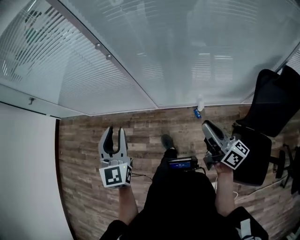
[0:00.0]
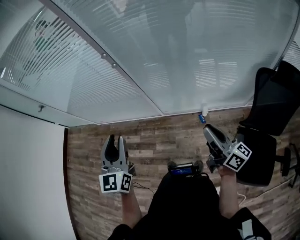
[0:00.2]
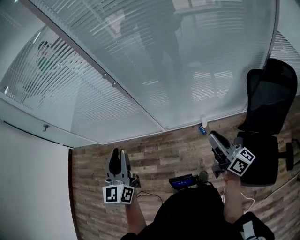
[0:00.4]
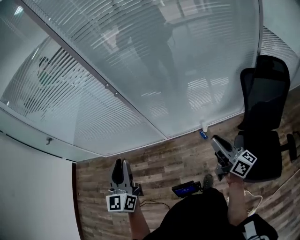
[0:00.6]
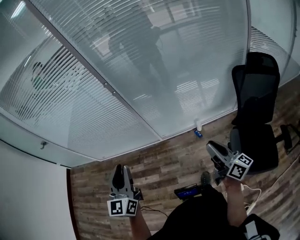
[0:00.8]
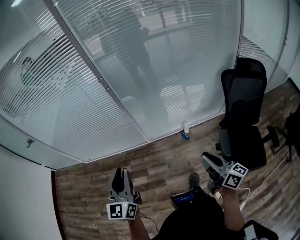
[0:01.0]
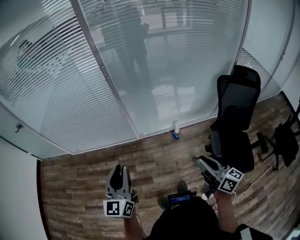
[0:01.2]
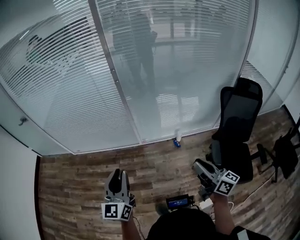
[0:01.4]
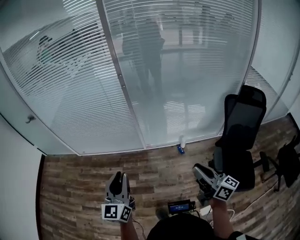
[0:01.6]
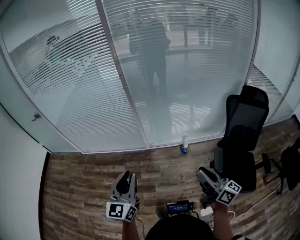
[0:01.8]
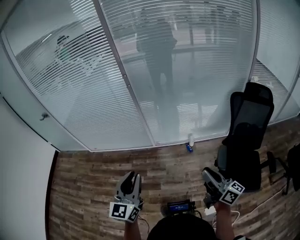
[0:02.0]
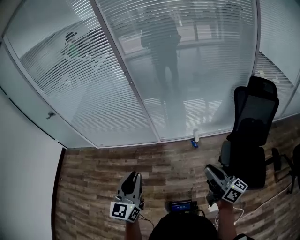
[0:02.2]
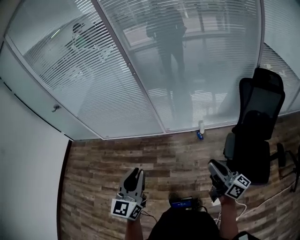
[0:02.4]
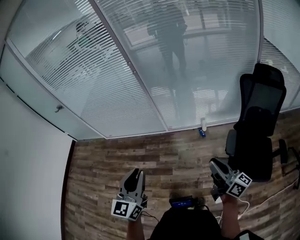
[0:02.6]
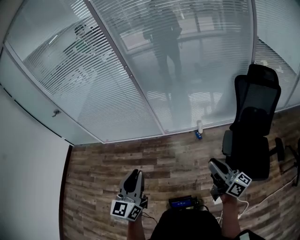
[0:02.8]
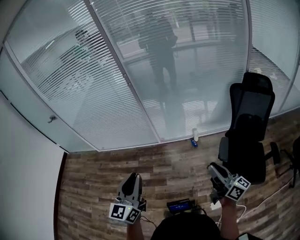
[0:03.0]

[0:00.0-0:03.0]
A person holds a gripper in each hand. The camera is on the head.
0:00.0 to 0:01.6: Both grippers travel together backward and to the left, roughly 25 cm. The left gripper turns by some 30 degrees.
0:01.6 to 0:03.0: The two grippers go roughly 15 cm backward and to the right.

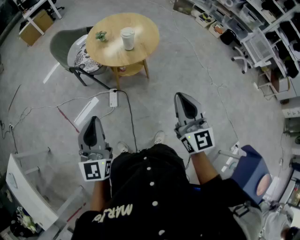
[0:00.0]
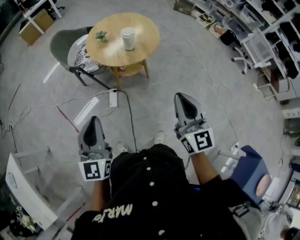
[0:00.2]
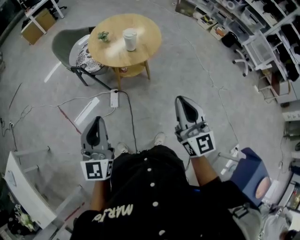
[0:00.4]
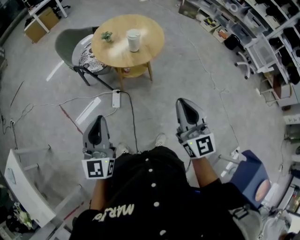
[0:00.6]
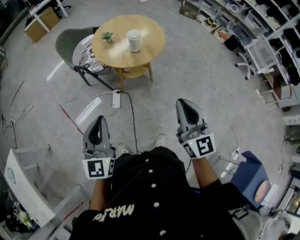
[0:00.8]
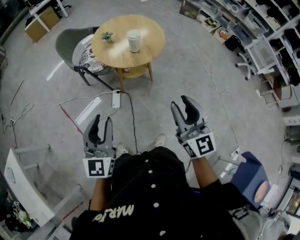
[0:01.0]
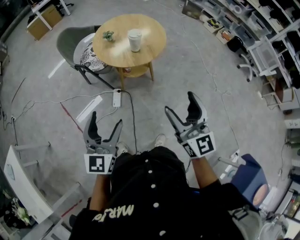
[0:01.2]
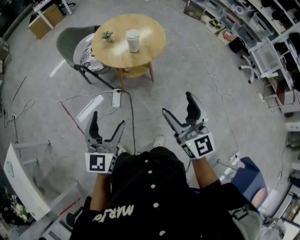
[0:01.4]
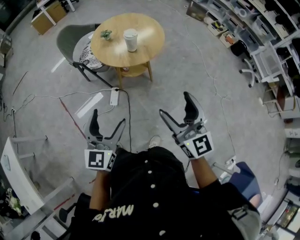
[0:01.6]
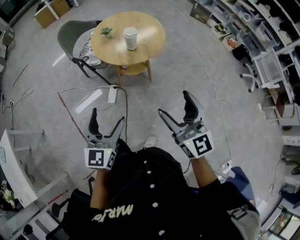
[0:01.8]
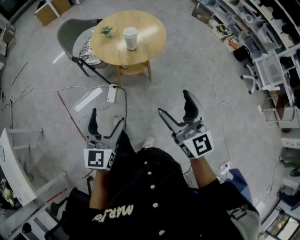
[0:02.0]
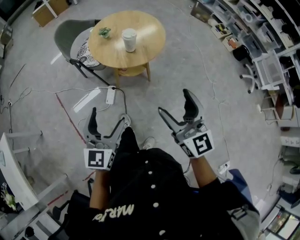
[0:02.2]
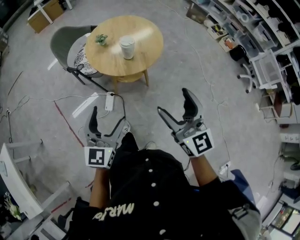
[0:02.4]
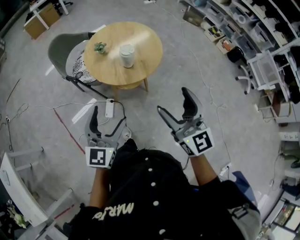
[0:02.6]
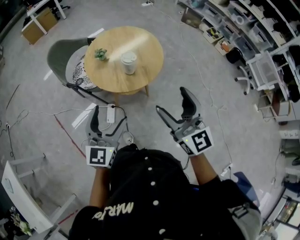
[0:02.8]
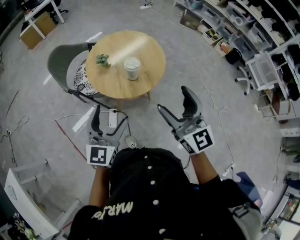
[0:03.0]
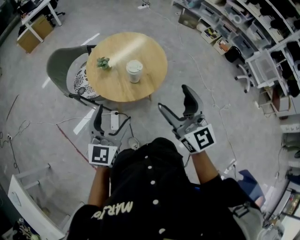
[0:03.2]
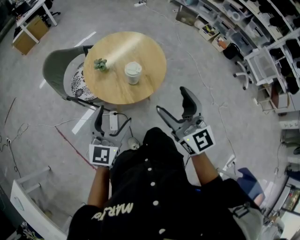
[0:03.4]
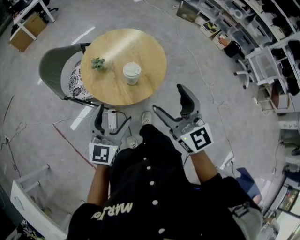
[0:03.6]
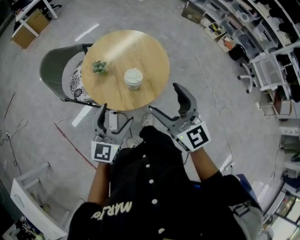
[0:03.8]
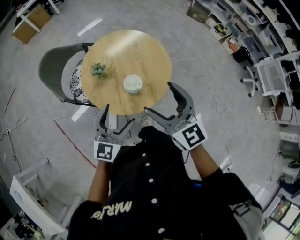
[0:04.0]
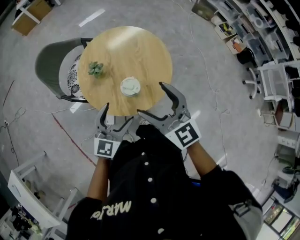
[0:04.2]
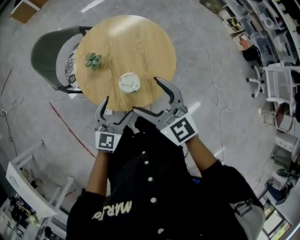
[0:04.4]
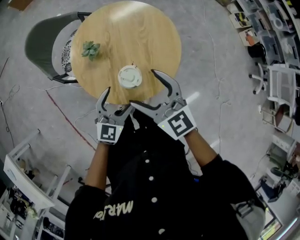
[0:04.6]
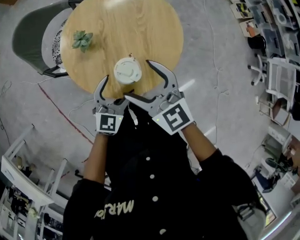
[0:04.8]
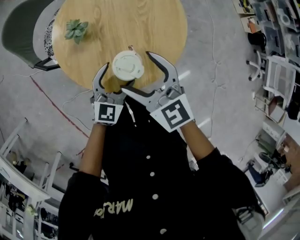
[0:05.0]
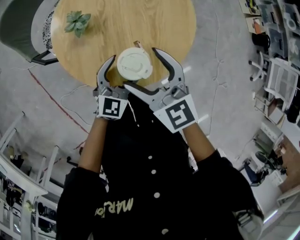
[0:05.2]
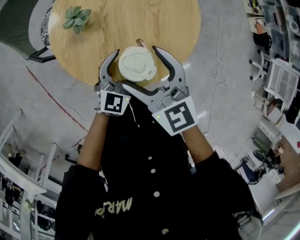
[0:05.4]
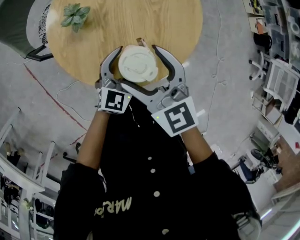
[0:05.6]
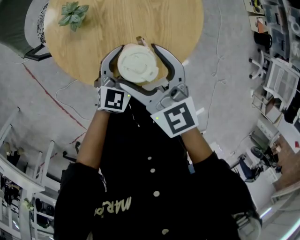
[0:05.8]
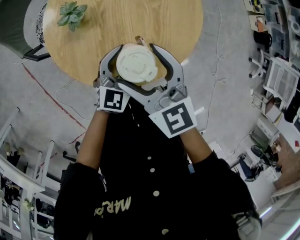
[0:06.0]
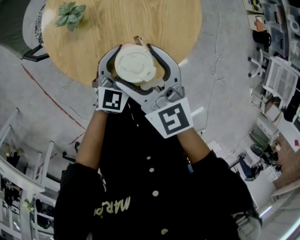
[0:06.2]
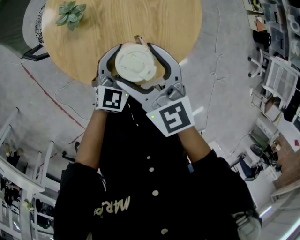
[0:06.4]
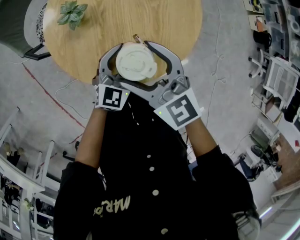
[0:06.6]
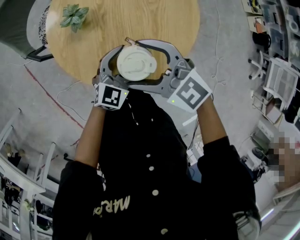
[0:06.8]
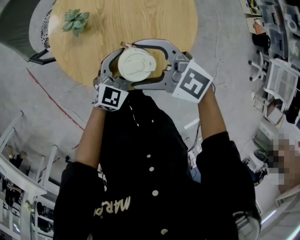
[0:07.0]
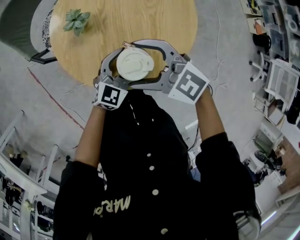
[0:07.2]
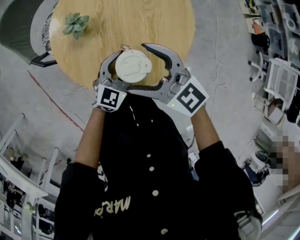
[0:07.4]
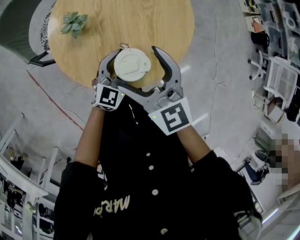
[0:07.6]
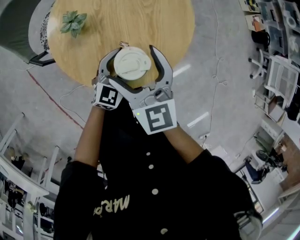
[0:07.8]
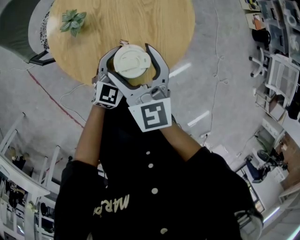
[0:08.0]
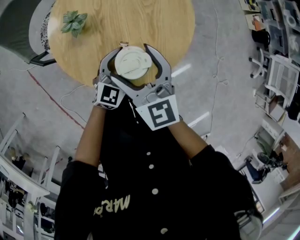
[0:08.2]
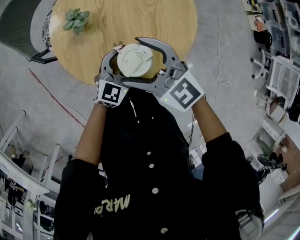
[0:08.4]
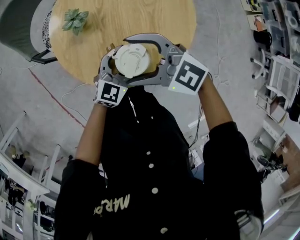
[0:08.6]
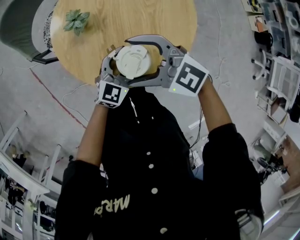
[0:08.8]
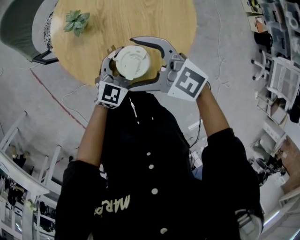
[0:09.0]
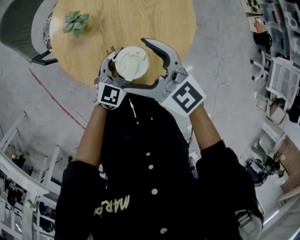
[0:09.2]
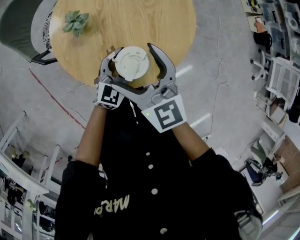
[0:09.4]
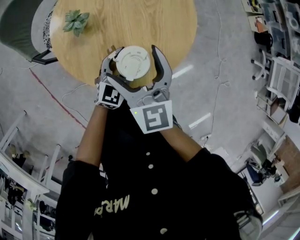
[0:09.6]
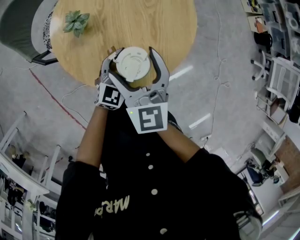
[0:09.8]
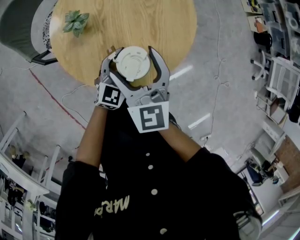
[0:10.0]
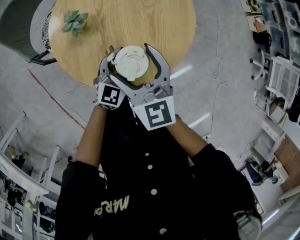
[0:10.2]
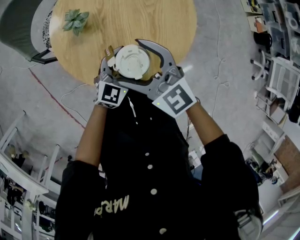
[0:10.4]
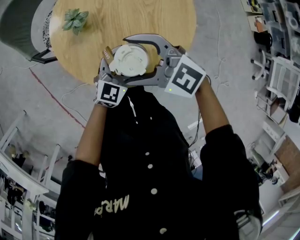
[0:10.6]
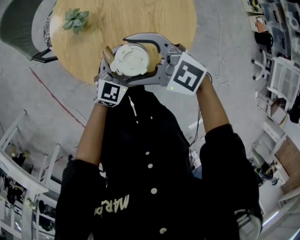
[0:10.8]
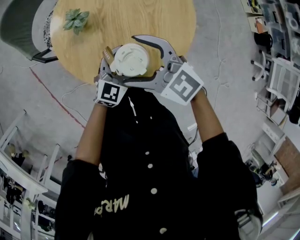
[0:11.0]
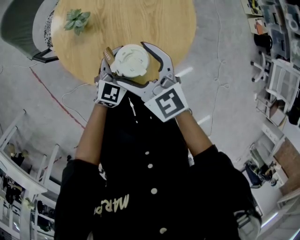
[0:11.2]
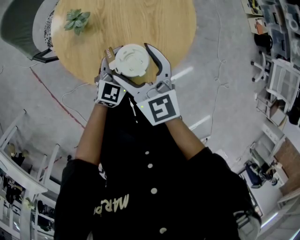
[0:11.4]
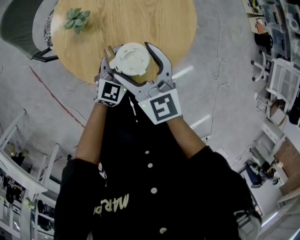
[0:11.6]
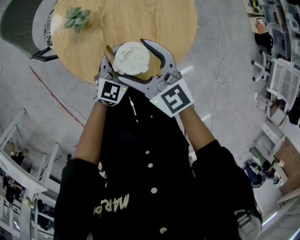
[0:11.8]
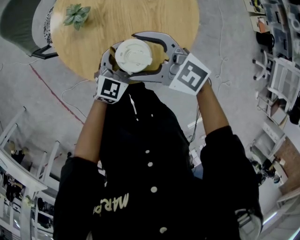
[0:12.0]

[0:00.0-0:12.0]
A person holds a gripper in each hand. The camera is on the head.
0:00.0 to 0:01.6: The left gripper moves to the right, some 10 cm, and opens up. Meanwhile the right gripper opens.
0:01.6 to 0:03.0: Both grippers move forward, roughly 25 cm.
0:03.0 to 0:04.4: The grippers both shift forward and downward by roughly 30 cm. The right gripper rotates approximately 30 degrees.
0:04.4 to 0:06.0: The grippers both shift downward and forward by about 20 cm.
0:07.6 to 0:09.0: The right gripper rotates about 40 degrees.
0:09.0 to 0:10.4: The right gripper changes its angle by roughly 20 degrees.

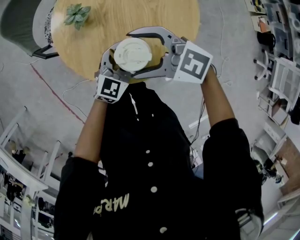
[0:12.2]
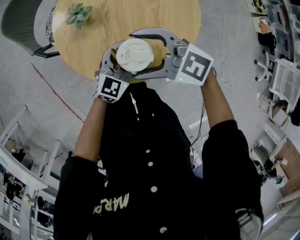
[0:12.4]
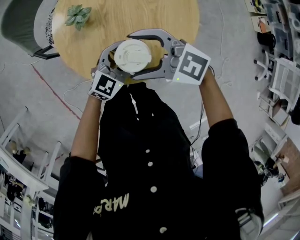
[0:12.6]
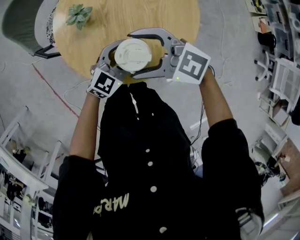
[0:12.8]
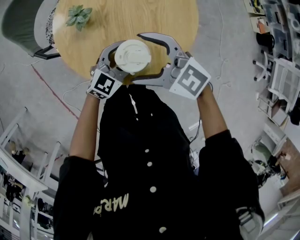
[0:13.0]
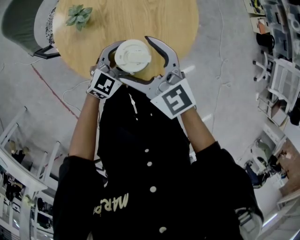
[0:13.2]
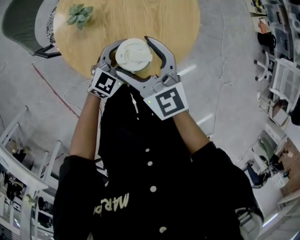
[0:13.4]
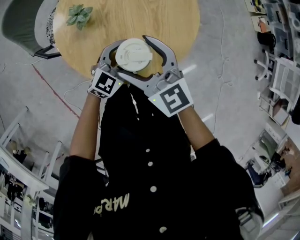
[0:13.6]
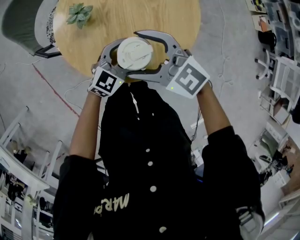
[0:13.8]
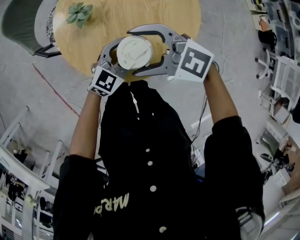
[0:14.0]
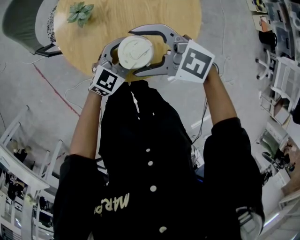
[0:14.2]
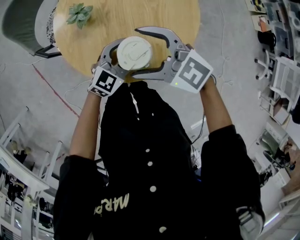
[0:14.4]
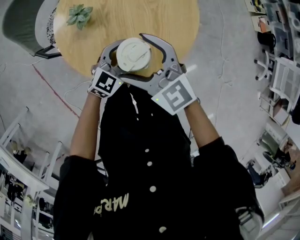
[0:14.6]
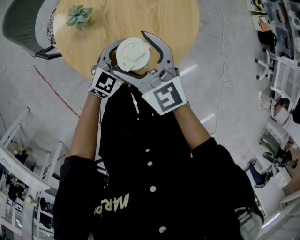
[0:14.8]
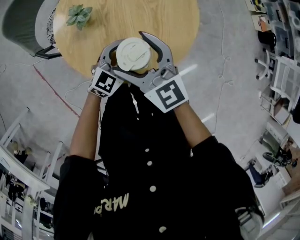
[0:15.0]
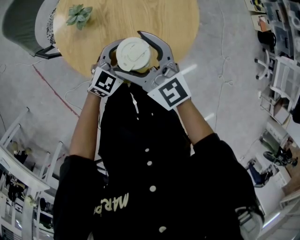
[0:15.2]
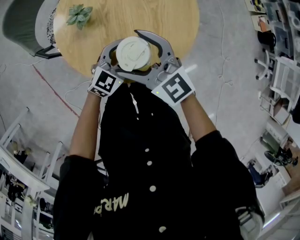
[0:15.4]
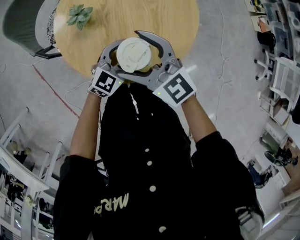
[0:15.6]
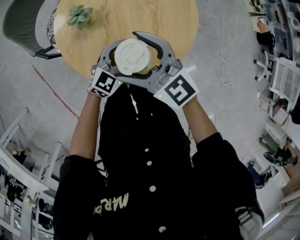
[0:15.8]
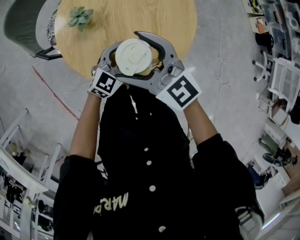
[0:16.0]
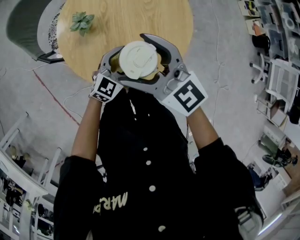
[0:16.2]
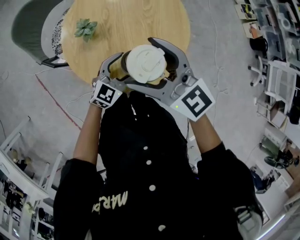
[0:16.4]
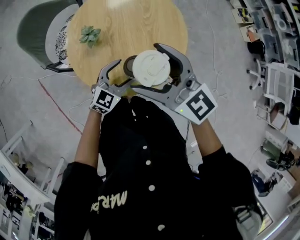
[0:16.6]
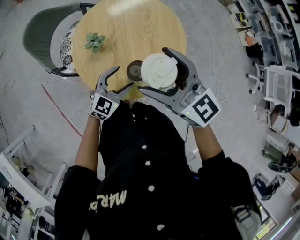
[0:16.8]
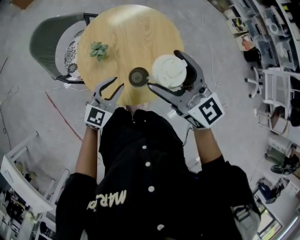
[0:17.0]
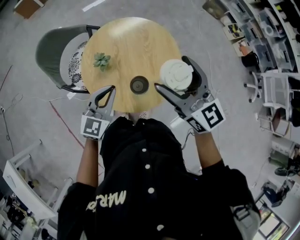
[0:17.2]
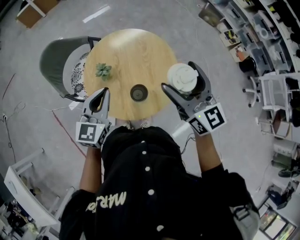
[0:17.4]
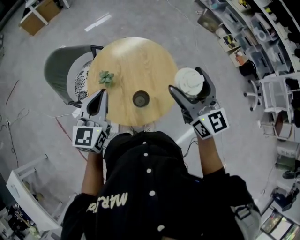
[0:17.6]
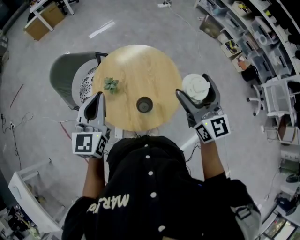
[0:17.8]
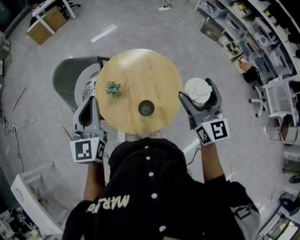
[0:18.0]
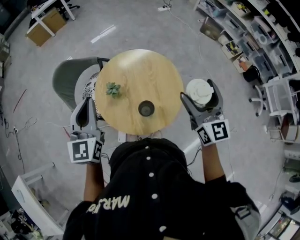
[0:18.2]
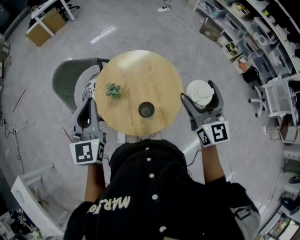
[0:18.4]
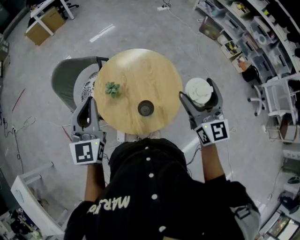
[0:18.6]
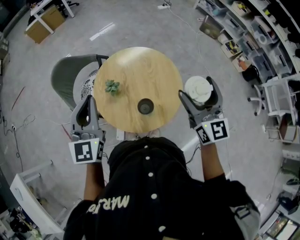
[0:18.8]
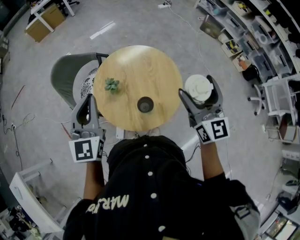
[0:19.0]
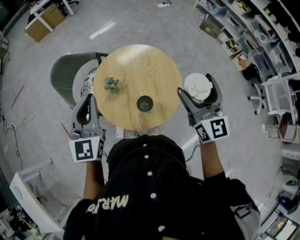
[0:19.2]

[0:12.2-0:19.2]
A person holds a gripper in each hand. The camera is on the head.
0:12.2 to 0:13.6: The right gripper turns by approximately 50 degrees.
0:15.0 to 0:16.4: The right gripper goes approximately 10 cm upward.
0:16.4 to 0:17.8: The left gripper travels upward by some 35 cm, swivels about 40 degrees, and closes; the right gripper heads upward and to the right, covering roughly 25 cm, and changes its angle by approximately 40 degrees.
0:17.8 to 0:19.2: The grippers stay close to where they were, moving slightly.

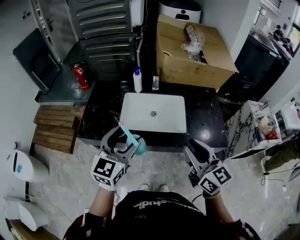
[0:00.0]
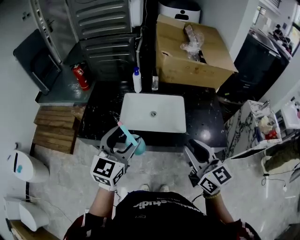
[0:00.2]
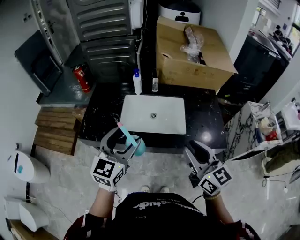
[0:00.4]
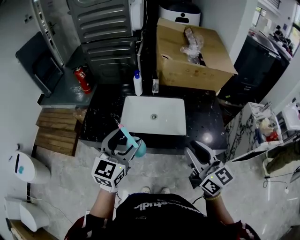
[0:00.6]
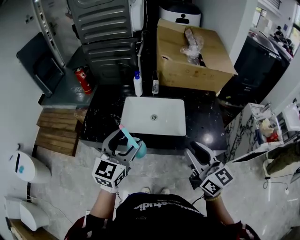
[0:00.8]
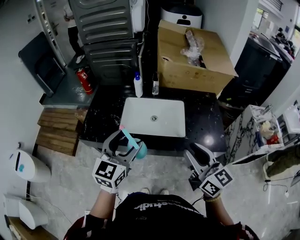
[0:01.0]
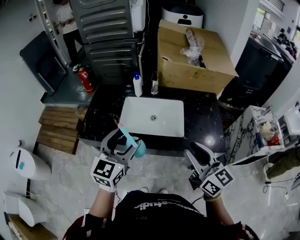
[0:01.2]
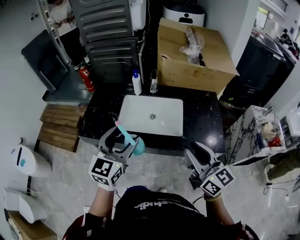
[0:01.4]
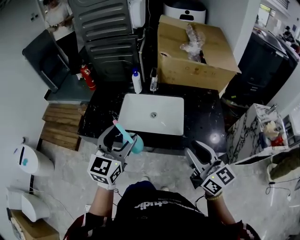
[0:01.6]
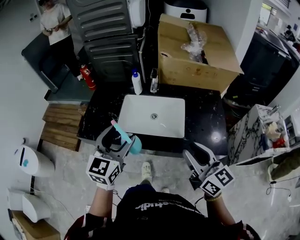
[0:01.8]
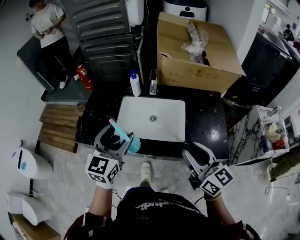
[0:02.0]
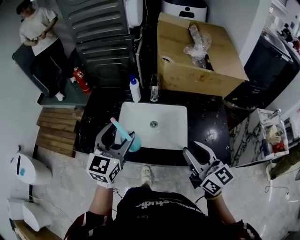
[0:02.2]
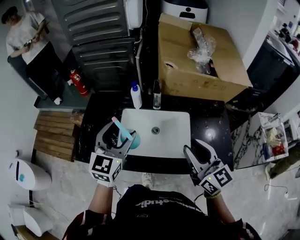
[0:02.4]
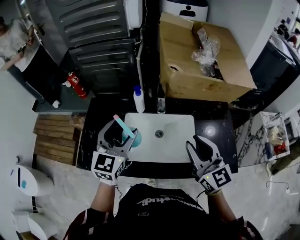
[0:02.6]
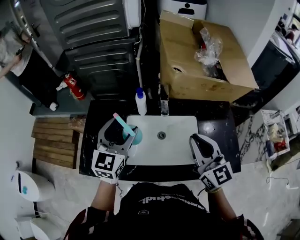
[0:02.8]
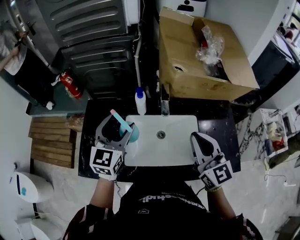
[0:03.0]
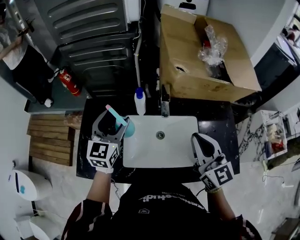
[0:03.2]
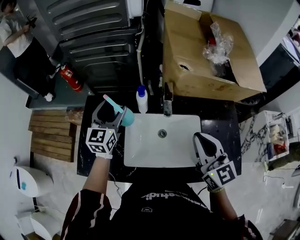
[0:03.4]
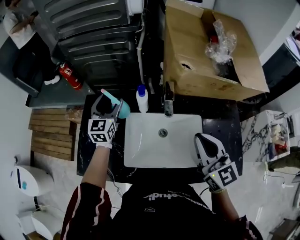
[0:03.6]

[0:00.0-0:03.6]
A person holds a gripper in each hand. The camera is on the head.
0:00.0 to 0:01.8: The right gripper is displaced to the right by approximately 5 cm.
0:01.8 to 0:03.6: The left gripper moves forward, some 50 cm. The right gripper goes roughly 30 cm forward, turns by about 20 degrees, and closes.
